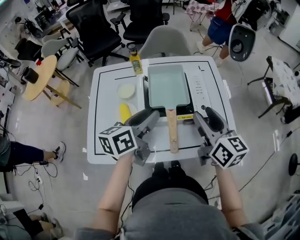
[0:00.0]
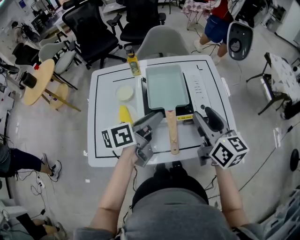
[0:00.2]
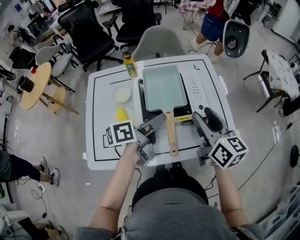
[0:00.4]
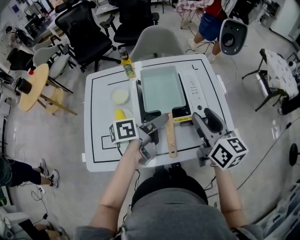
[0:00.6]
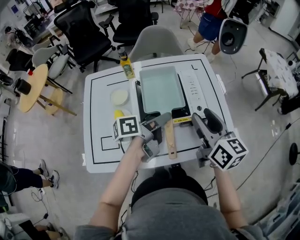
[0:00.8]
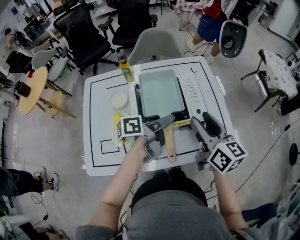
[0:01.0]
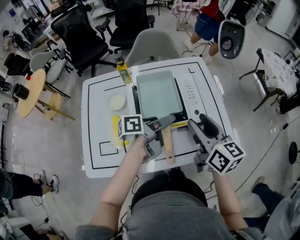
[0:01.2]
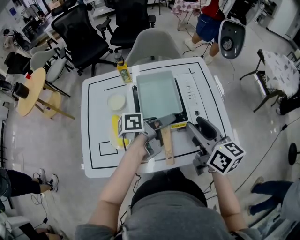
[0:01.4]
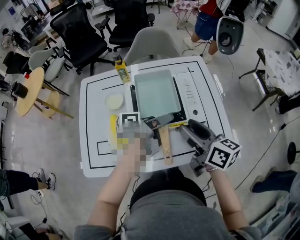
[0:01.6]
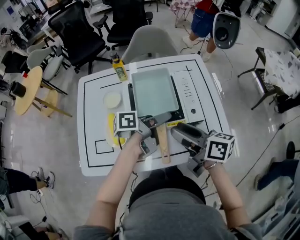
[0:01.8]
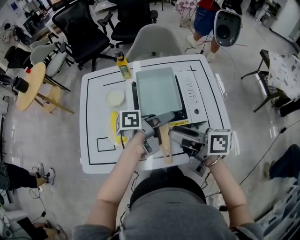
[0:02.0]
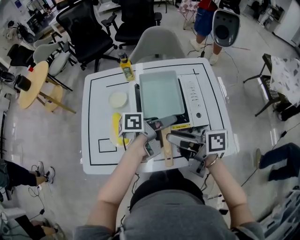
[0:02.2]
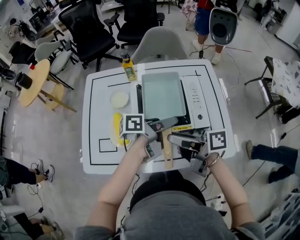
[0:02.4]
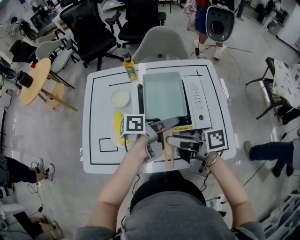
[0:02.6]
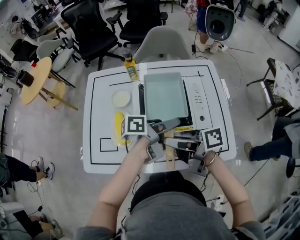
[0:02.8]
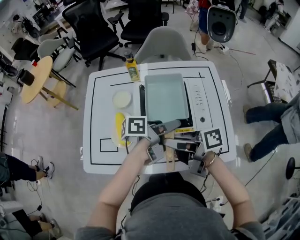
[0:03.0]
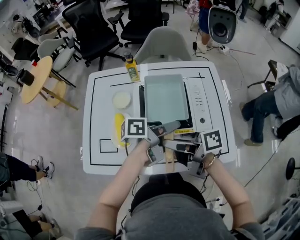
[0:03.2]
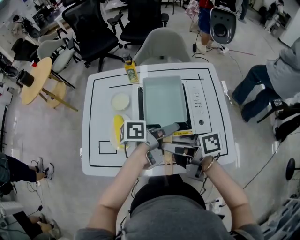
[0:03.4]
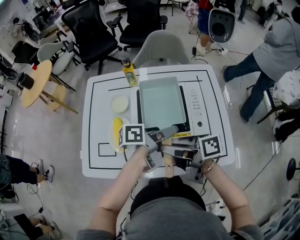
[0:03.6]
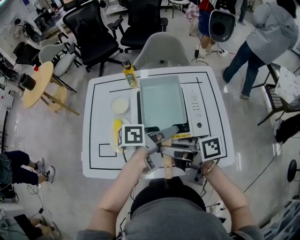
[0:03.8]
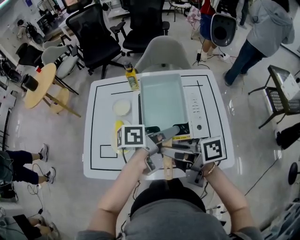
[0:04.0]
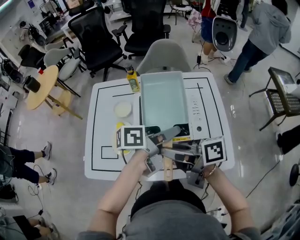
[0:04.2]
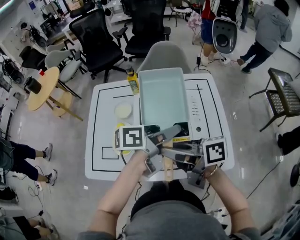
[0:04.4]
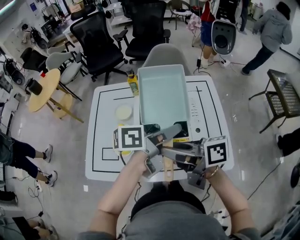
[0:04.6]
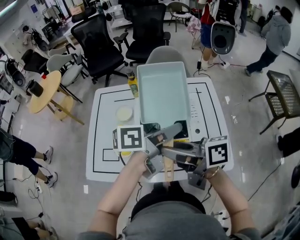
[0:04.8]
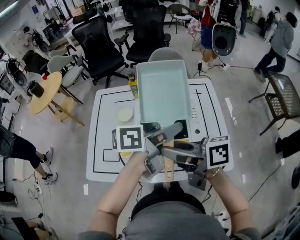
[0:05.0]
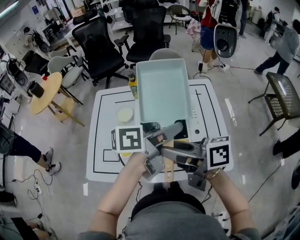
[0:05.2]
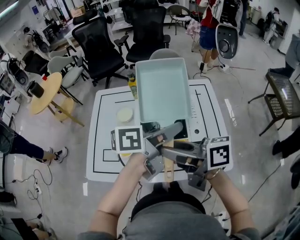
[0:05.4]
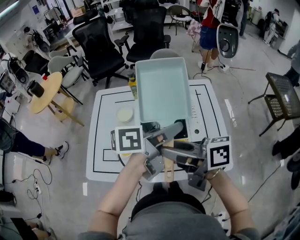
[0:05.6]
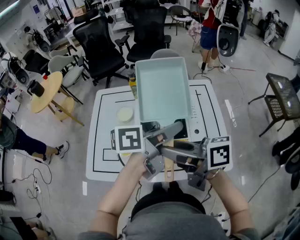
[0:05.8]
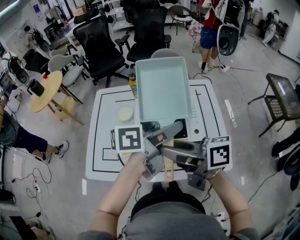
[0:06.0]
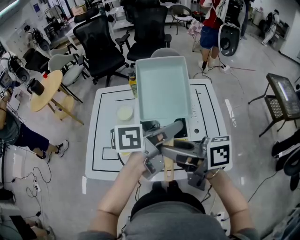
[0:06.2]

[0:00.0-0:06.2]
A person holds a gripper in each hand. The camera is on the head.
0:00.0 to 0:01.6: The left gripper goes roughly 15 cm to the right, downward and forward, and swivels some 50 degrees.
0:01.6 to 0:03.2: The right gripper moves some 10 cm, and rotates approximately 50 degrees.
0:03.2 to 0:04.6: Both grippers move upward, roughly 10 cm.
0:04.6 to 0:06.2: The grippers make only small movements.

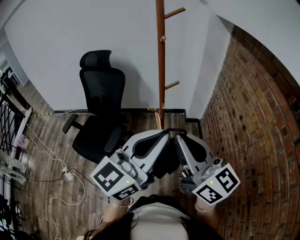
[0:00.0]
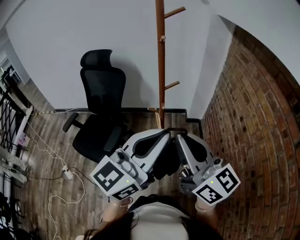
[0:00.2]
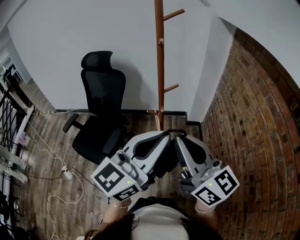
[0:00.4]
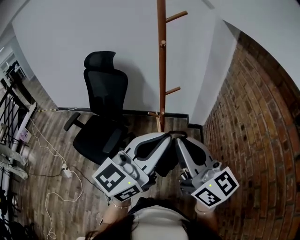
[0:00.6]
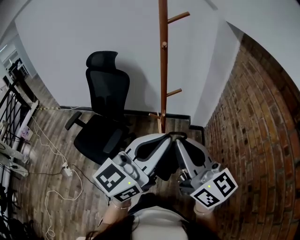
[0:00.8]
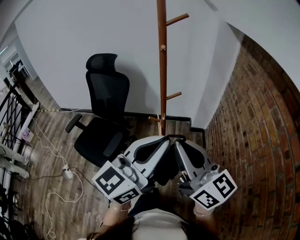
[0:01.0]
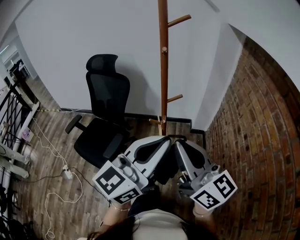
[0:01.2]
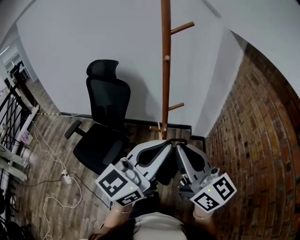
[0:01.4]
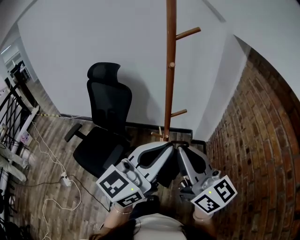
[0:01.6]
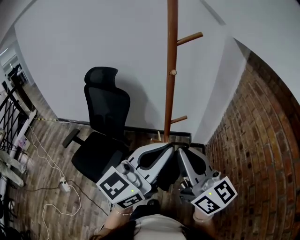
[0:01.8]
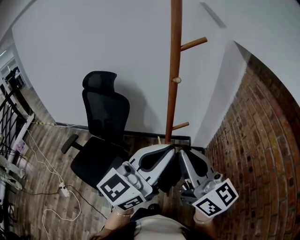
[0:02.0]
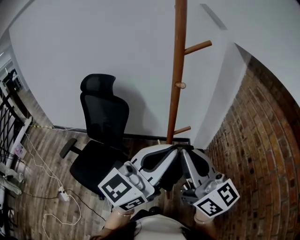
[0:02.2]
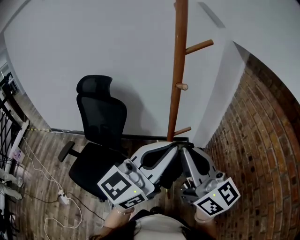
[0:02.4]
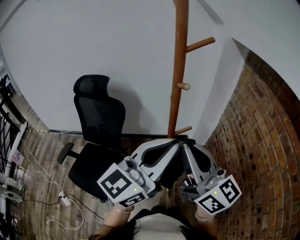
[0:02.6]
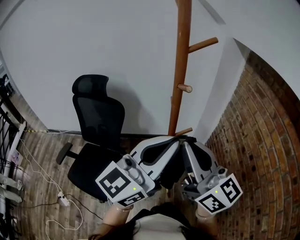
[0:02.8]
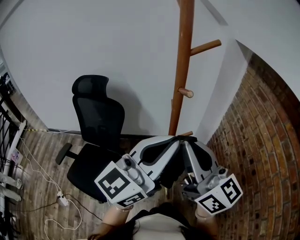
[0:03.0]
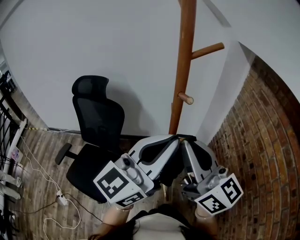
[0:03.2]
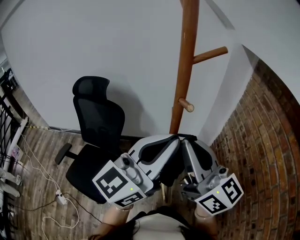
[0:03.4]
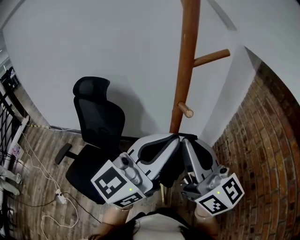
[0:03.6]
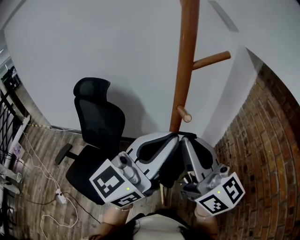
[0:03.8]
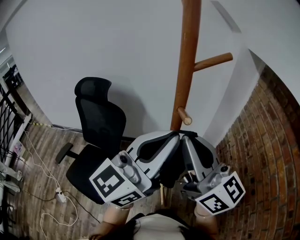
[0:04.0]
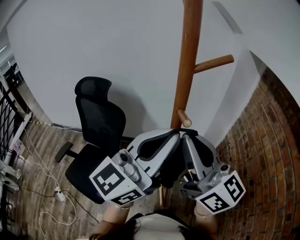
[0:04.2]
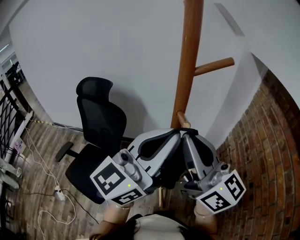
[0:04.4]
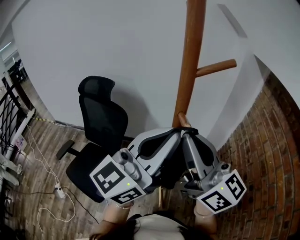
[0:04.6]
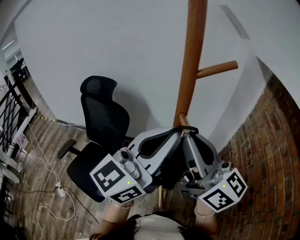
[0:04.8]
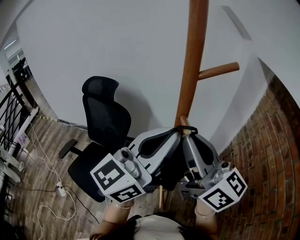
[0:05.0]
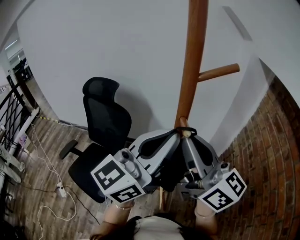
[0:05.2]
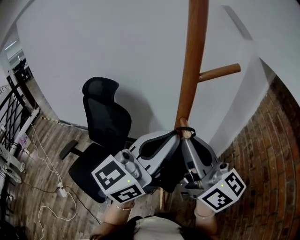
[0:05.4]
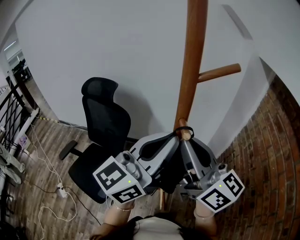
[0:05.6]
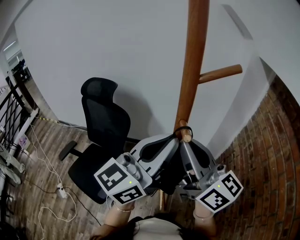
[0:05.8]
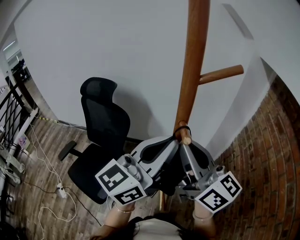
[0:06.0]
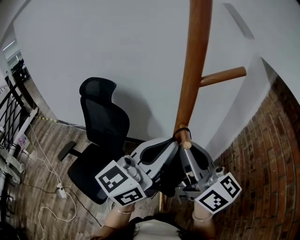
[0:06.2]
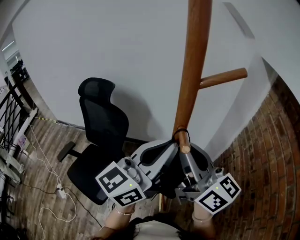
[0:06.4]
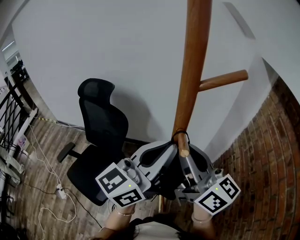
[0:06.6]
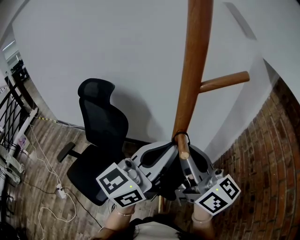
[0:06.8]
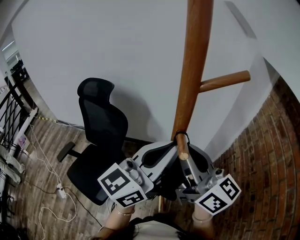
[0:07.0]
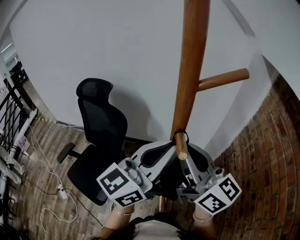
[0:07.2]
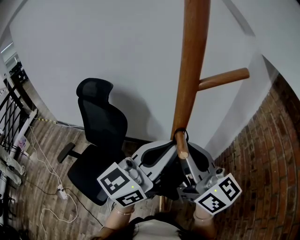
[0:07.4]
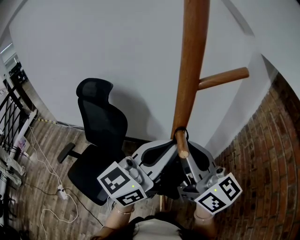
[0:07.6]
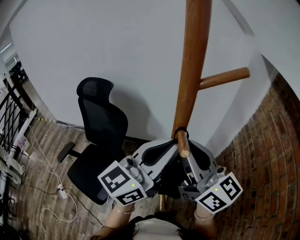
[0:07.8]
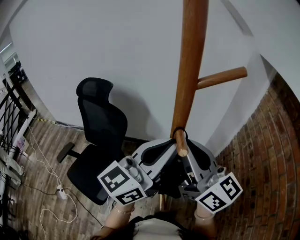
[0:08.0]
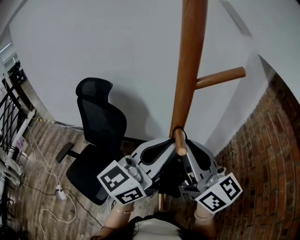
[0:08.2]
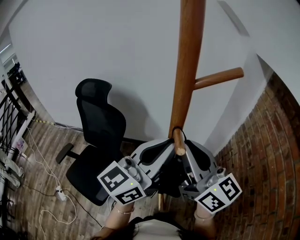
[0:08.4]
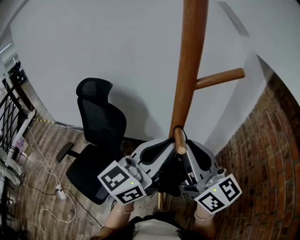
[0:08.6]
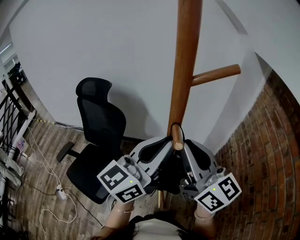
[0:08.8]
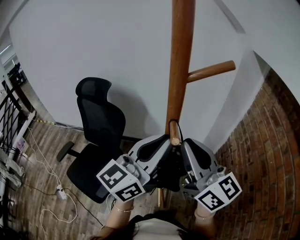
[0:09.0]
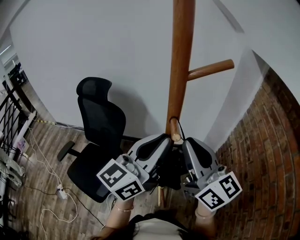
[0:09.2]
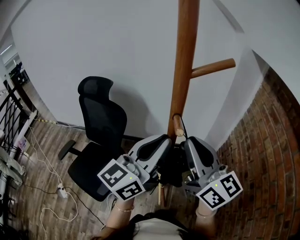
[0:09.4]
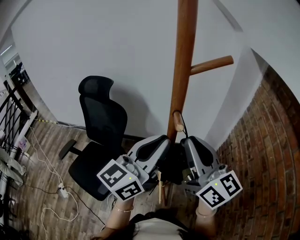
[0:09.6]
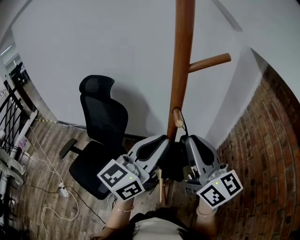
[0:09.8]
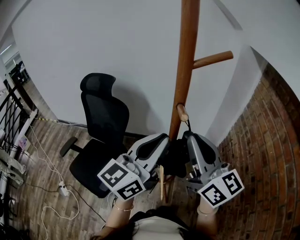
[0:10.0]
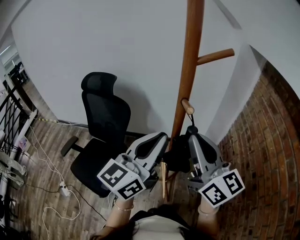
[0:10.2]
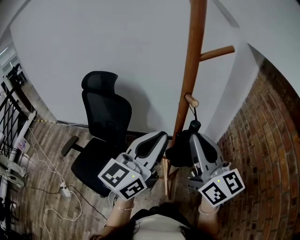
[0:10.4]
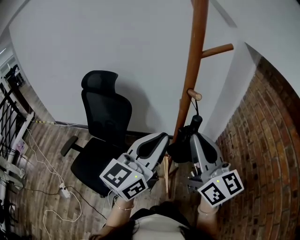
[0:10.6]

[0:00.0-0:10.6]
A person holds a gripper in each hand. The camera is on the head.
0:00.0 to 0:01.6: Both grippers move forward, approximately 10 cm.
0:01.6 to 0:03.0: Both grippers move forward, approximately 10 cm.
0:03.0 to 0:04.6: Both grippers move forward, roughly 10 cm.
0:04.6 to 0:06.0: The right gripper shifts by approximately 5 cm. The left gripper moves roughly 5 cm.
0:06.0 to 0:09.0: The grippers move only a little.
0:09.0 to 0:10.6: The grippers both shift backward by roughly 10 cm.

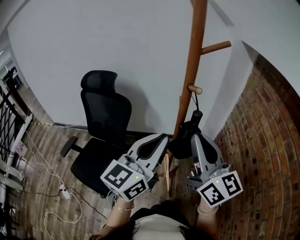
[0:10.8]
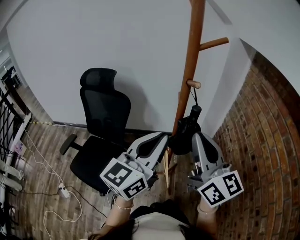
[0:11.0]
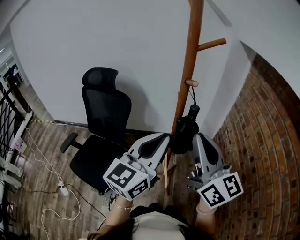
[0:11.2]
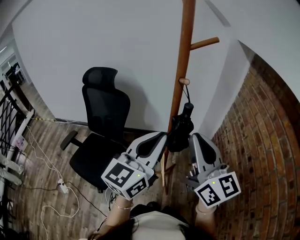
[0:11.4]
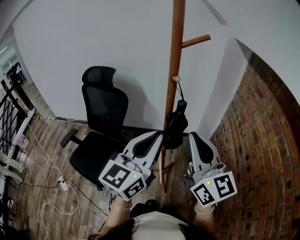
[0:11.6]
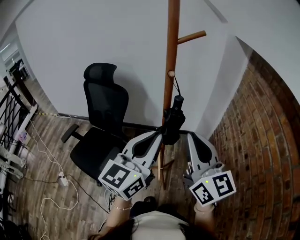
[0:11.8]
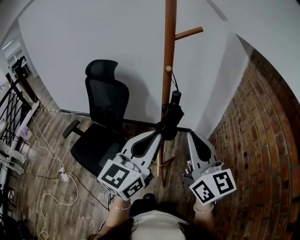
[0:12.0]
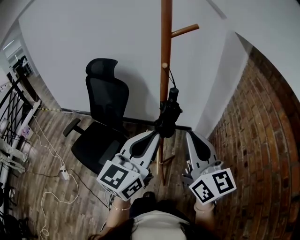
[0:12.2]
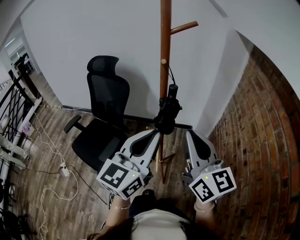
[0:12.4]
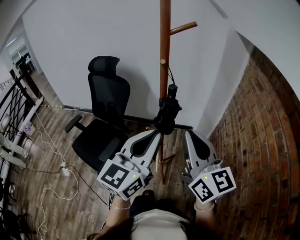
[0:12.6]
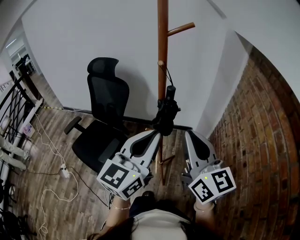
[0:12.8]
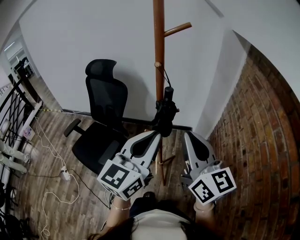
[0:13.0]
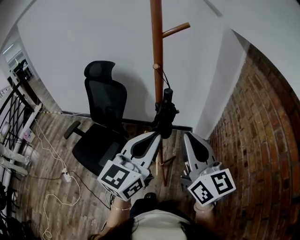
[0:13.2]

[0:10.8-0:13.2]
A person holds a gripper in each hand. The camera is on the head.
0:10.8 to 0:12.0: Both grippers move backward and to the right, about 10 cm.
0:12.0 to 0:13.2: The grippers move only a little.

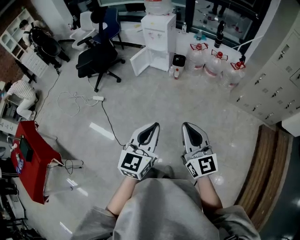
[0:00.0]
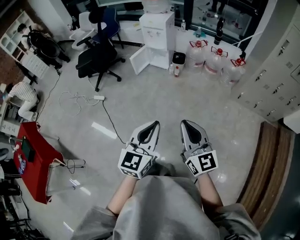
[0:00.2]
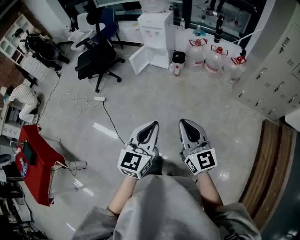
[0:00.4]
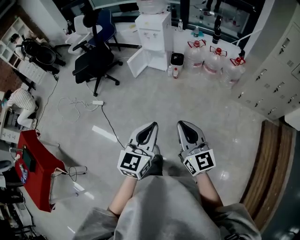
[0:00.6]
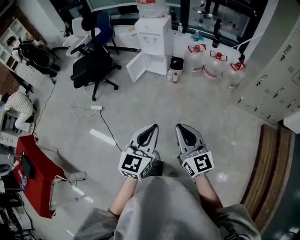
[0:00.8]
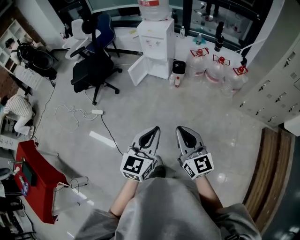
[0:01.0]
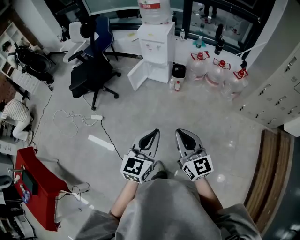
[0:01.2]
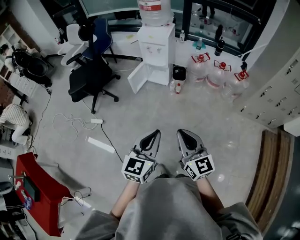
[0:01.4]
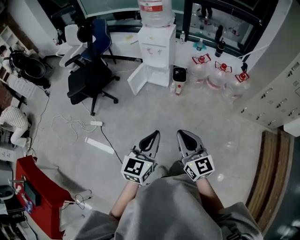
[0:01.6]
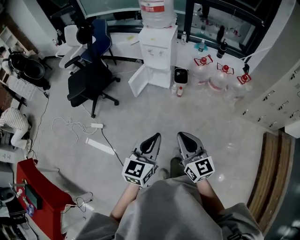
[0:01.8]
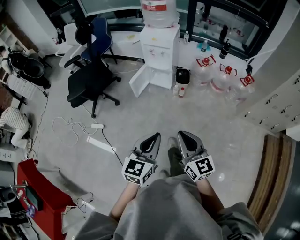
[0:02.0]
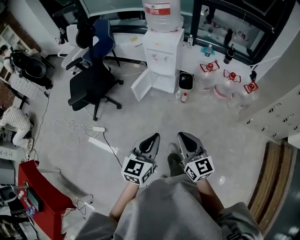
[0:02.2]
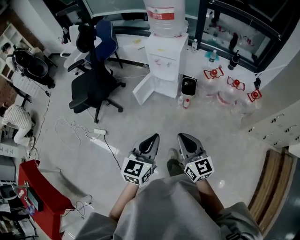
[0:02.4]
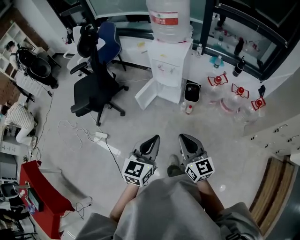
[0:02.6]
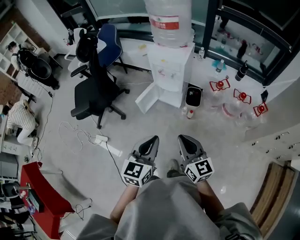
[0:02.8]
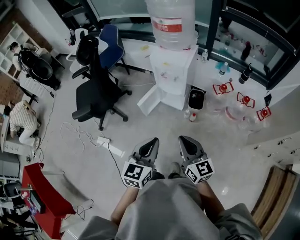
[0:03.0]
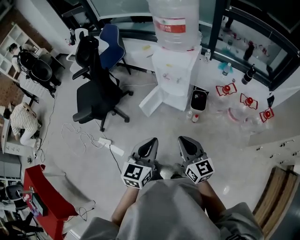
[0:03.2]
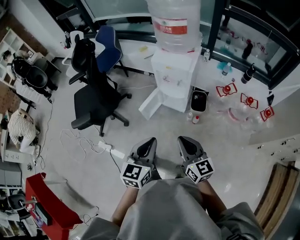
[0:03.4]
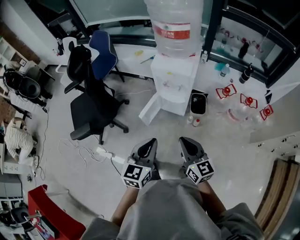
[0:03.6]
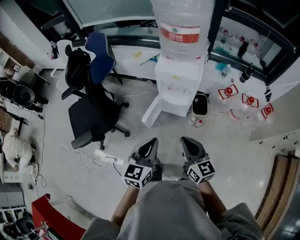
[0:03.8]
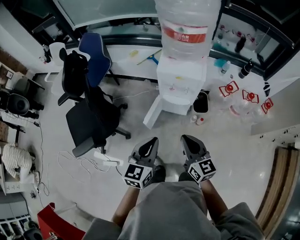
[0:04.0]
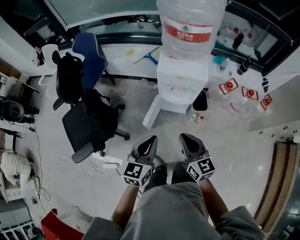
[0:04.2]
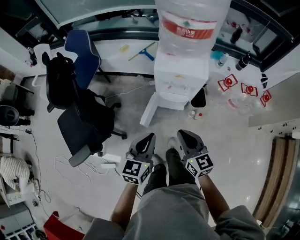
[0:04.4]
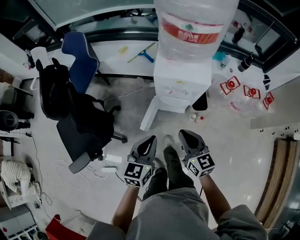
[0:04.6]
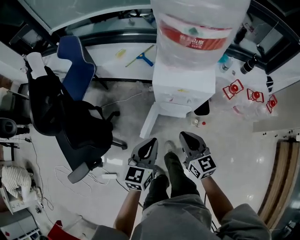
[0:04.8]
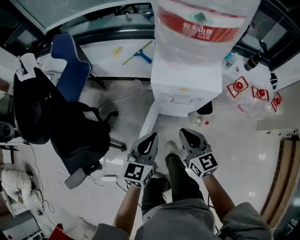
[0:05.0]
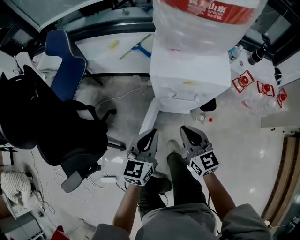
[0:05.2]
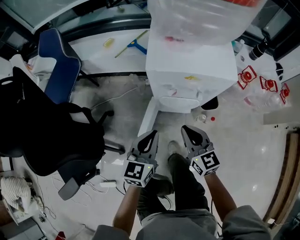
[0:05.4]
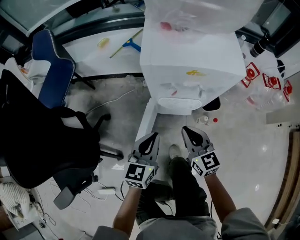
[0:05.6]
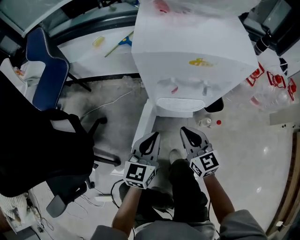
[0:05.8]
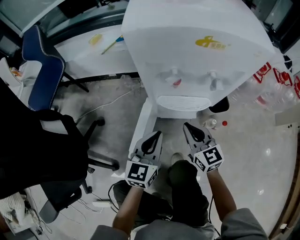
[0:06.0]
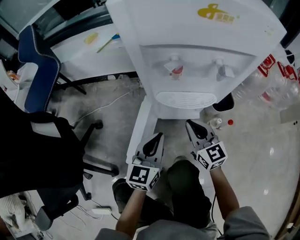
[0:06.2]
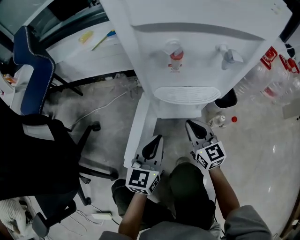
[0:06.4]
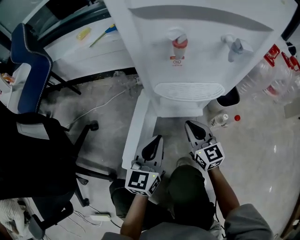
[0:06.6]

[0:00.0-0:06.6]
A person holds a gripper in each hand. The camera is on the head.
0:00.0 to 0:01.6: The two grippers go some 25 cm forward and to the left.
0:01.6 to 0:03.2: The grippers both shift forward by about 35 cm.
0:03.2 to 0:05.0: Both grippers move forward, downward and to the left, approximately 40 cm.
0:05.0 to 0:06.6: The grippers both shift downward by approximately 40 cm.
